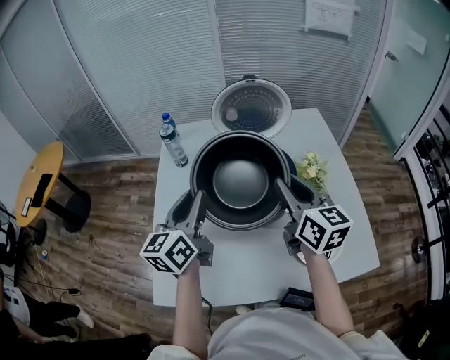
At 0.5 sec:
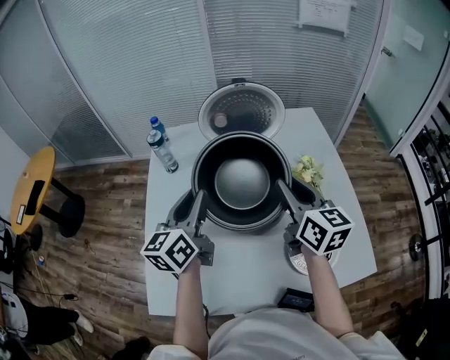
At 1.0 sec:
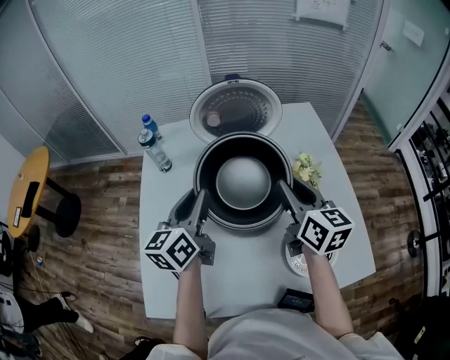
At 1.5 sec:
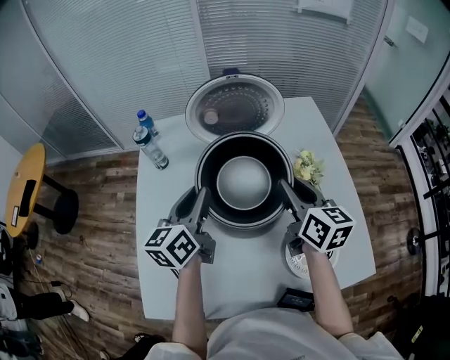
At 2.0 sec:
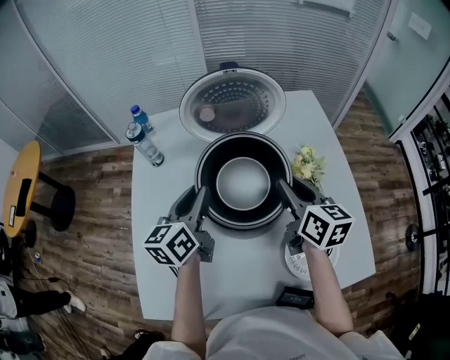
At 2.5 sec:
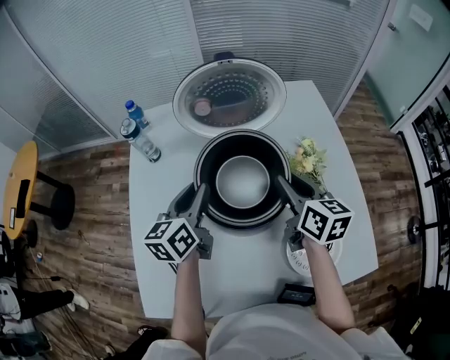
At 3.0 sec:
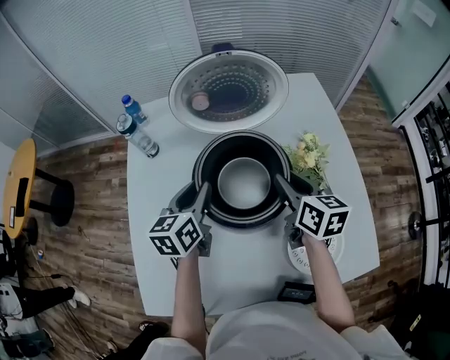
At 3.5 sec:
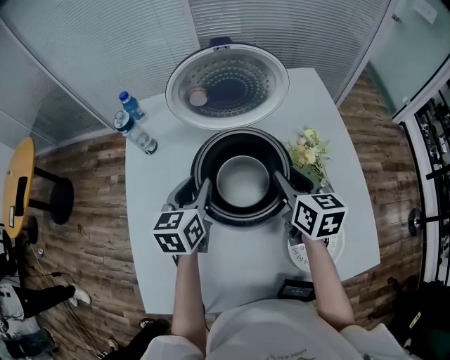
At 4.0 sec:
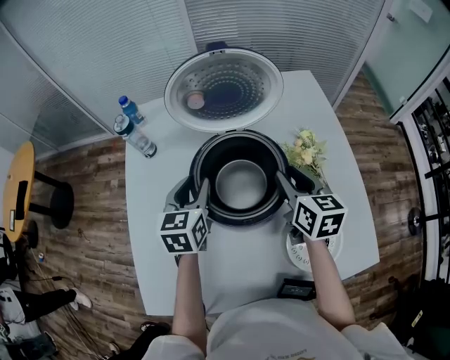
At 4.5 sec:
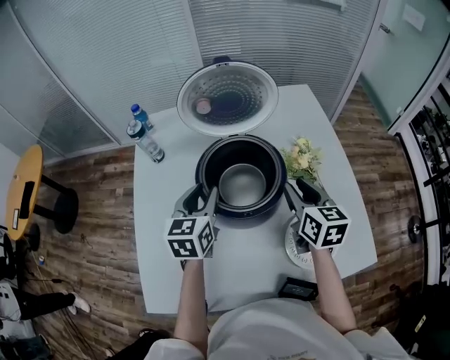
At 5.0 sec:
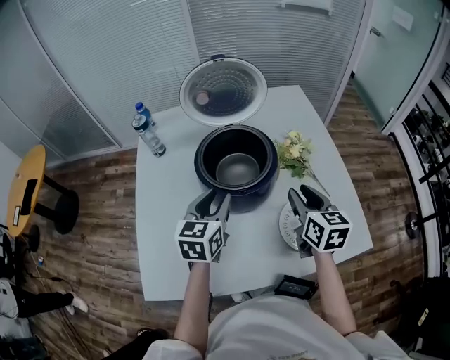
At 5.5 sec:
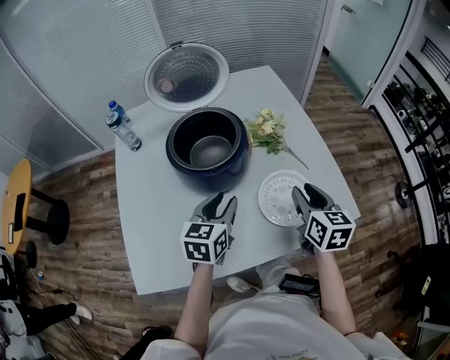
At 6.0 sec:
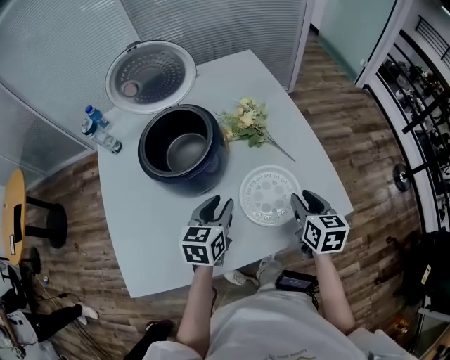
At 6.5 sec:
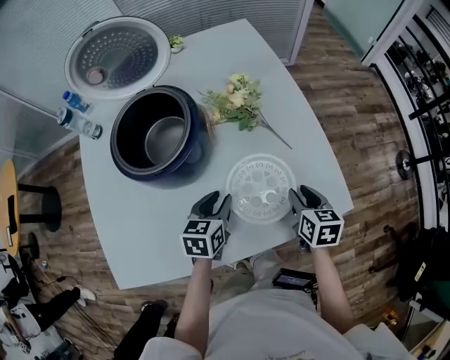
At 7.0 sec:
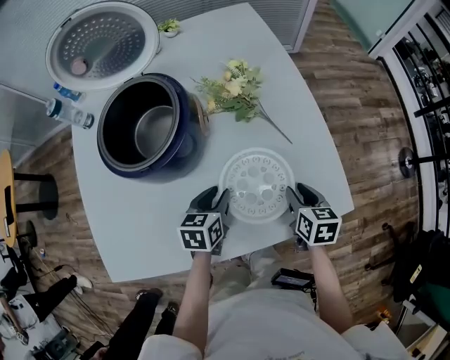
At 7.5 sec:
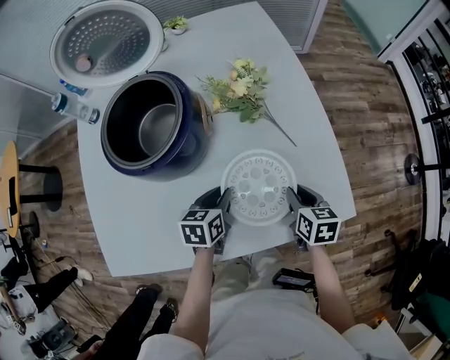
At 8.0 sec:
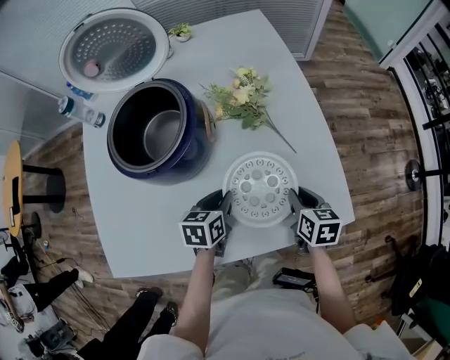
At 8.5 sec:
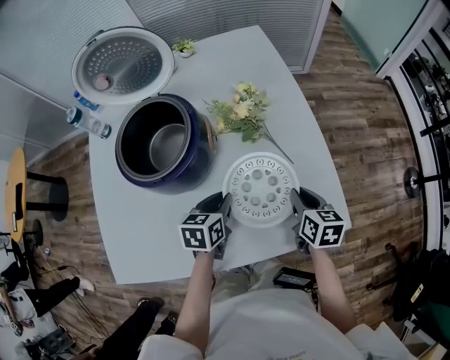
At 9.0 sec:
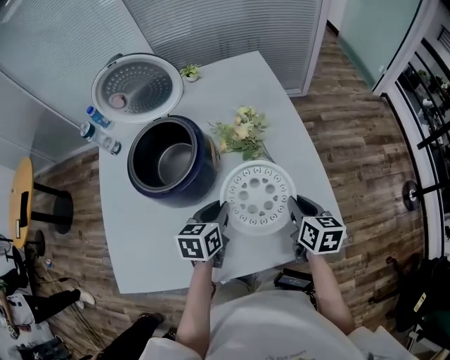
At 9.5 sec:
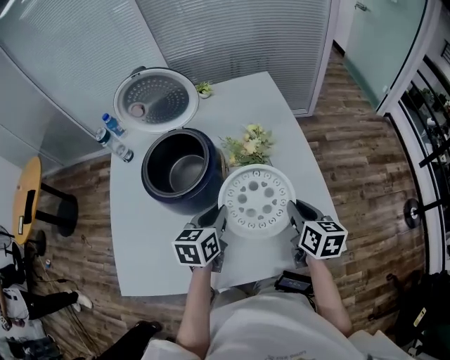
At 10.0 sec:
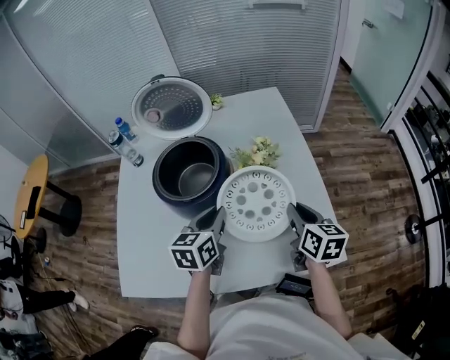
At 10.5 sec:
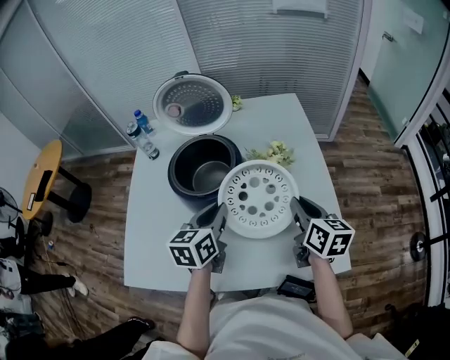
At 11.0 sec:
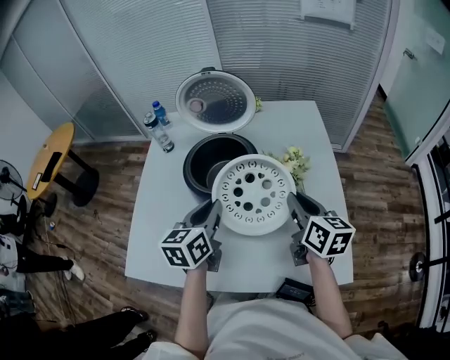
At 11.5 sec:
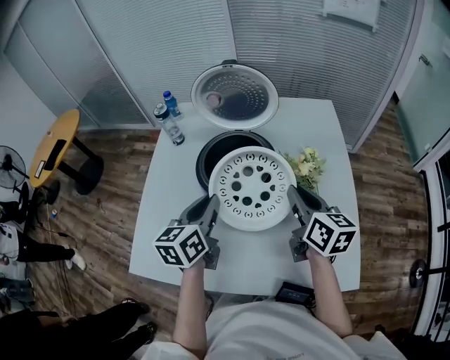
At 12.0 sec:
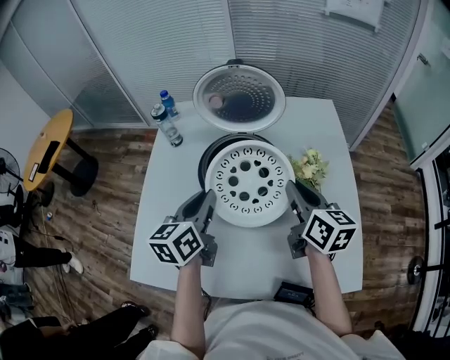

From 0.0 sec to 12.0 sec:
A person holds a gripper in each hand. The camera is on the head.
From 0.0 sec to 2.0 sec: The two grippers go some 15 cm forward, downward and to the right.
From 2.0 sec to 4.0 sec: Both grippers move downward, some 5 cm. The left gripper swivels some 30 degrees.
From 4.0 sec to 6.0 sec: The left gripper goes approximately 30 cm to the right and backward, and swivels approximately 20 degrees, while the right gripper heads backward and to the right, covering about 30 cm.
From 6.0 sec to 8.0 sec: The grippers both shift downward by about 15 cm. The left gripper rotates roughly 20 degrees.
From 8.0 sec to 10.0 sec: Both grippers move upward, roughly 20 cm. The left gripper changes its angle by some 20 degrees.
From 10.0 sec to 12.0 sec: The right gripper goes about 25 cm to the left, forward and upward; the left gripper is displaced to the left and forward by approximately 20 cm.

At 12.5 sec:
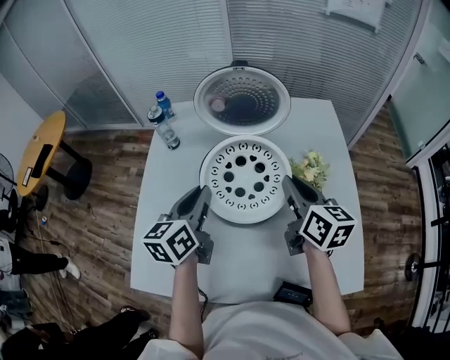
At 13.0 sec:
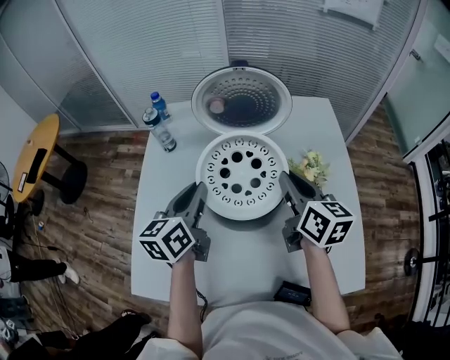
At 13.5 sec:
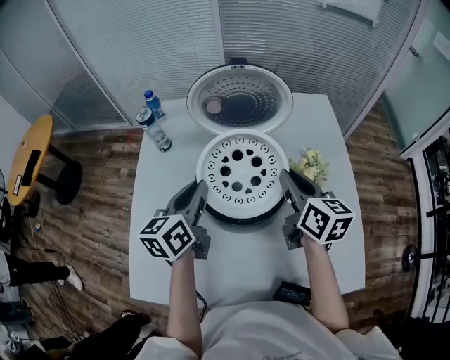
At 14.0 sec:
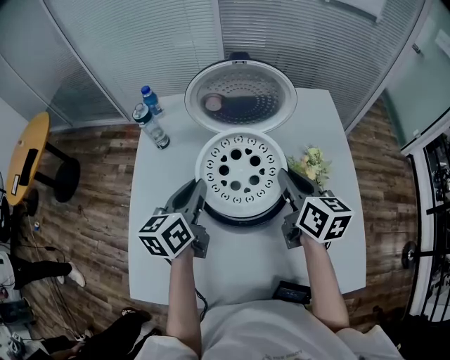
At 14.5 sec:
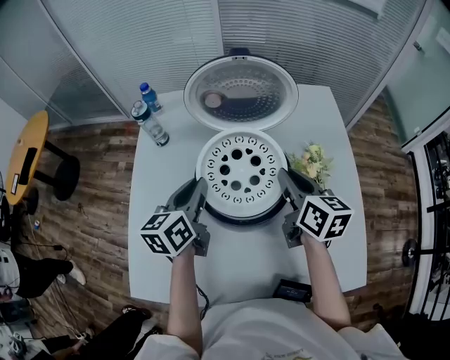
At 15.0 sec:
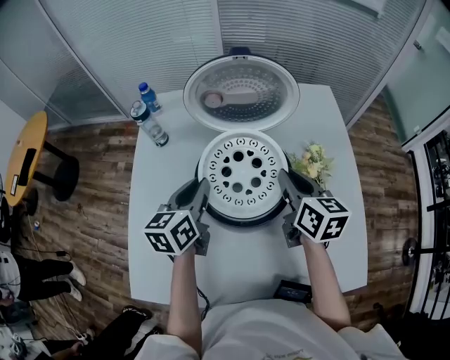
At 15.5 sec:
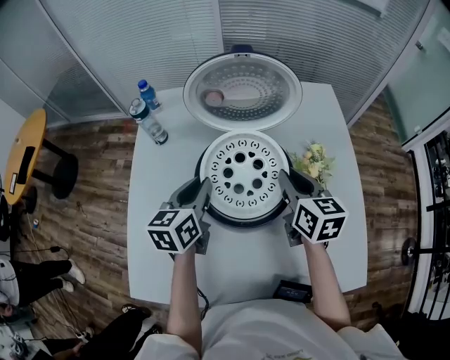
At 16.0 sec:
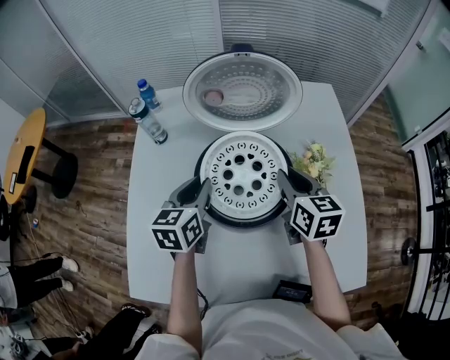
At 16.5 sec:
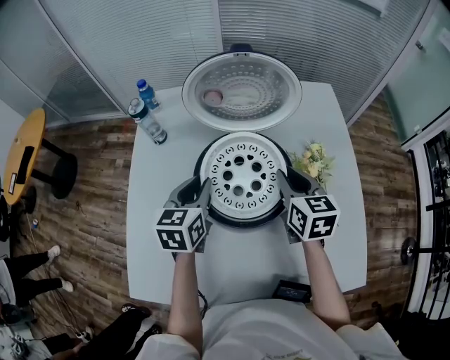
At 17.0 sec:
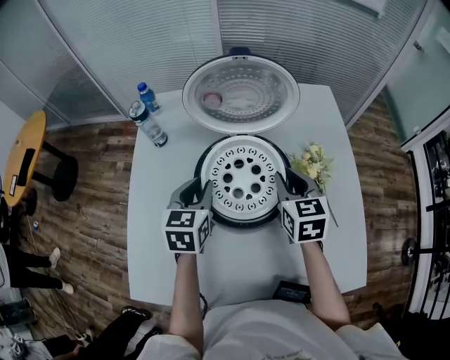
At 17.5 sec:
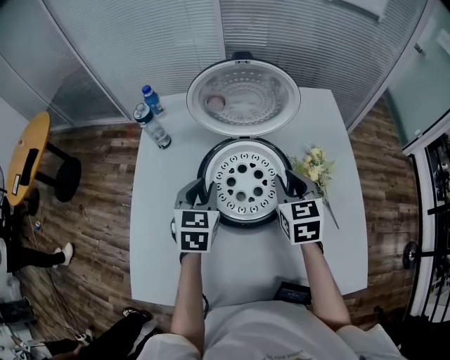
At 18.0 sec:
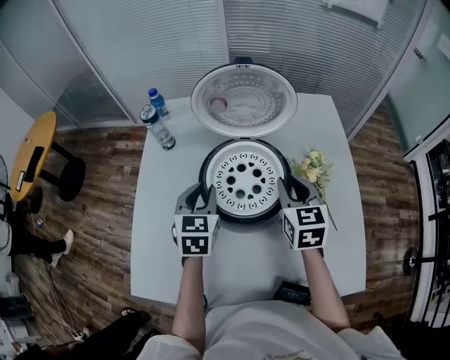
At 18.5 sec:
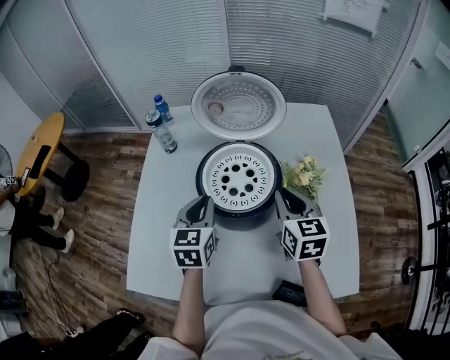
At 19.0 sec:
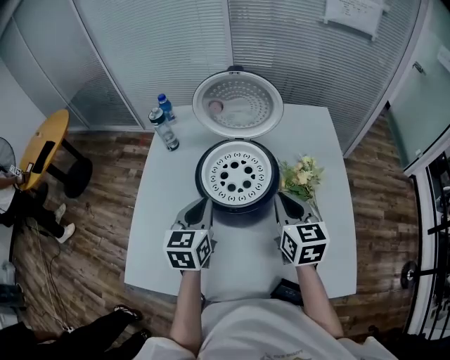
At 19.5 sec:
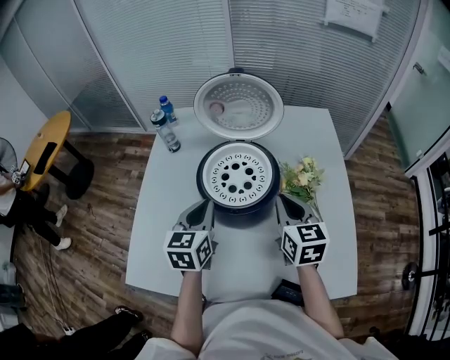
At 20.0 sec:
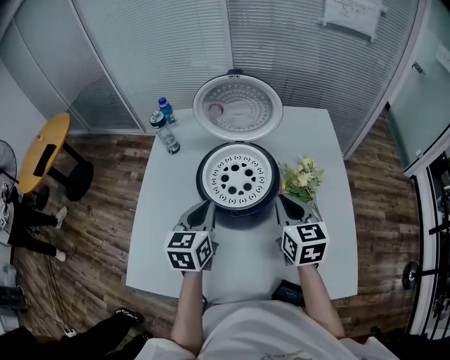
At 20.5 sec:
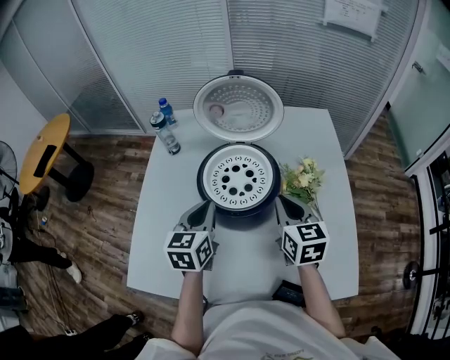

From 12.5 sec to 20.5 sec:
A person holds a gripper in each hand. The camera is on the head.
From 12.5 sec to 14.5 sec: The left gripper shifts by about 5 cm.
From 14.5 sec to 16.5 sec: There are only small adjustments of the grippers.
From 16.5 sec to 18.5 sec: The grippers both shift backward by approximately 5 cm.
From 18.5 sec to 20.5 sec: There are only small adjustments of the grippers.

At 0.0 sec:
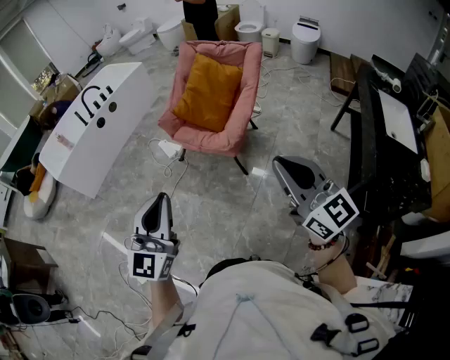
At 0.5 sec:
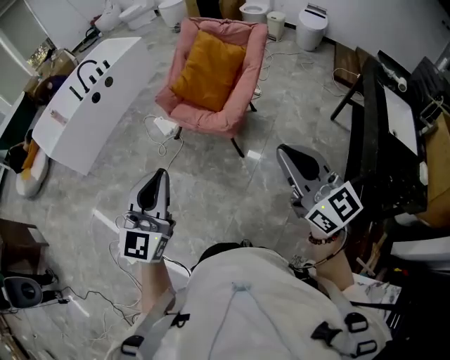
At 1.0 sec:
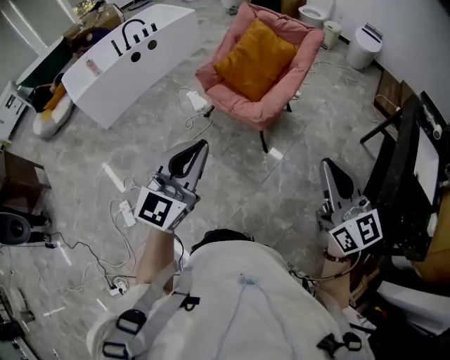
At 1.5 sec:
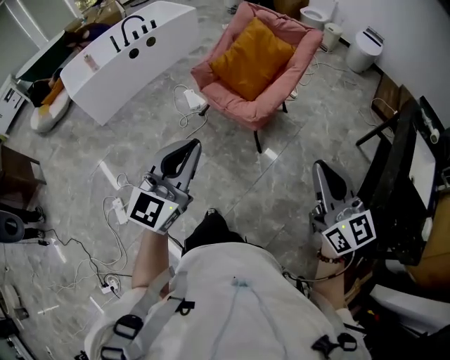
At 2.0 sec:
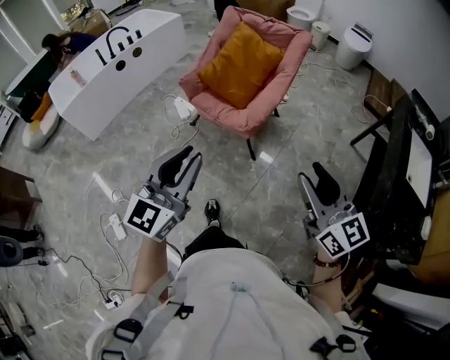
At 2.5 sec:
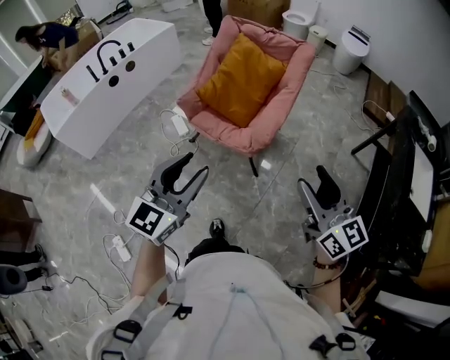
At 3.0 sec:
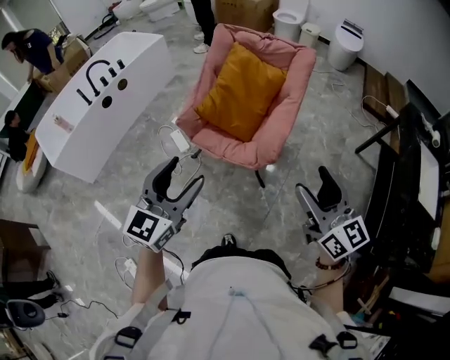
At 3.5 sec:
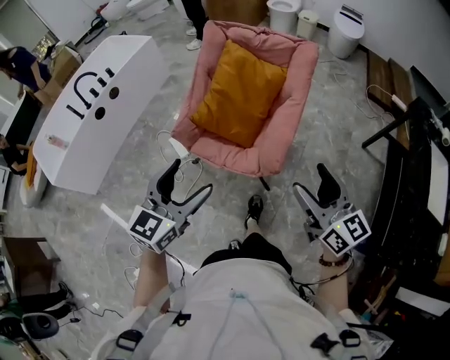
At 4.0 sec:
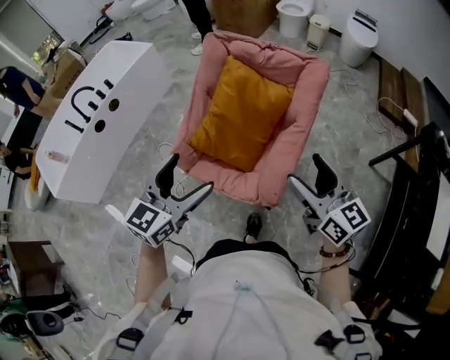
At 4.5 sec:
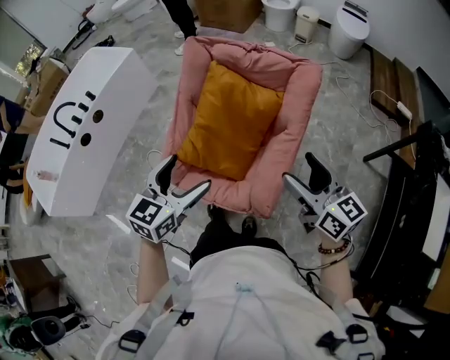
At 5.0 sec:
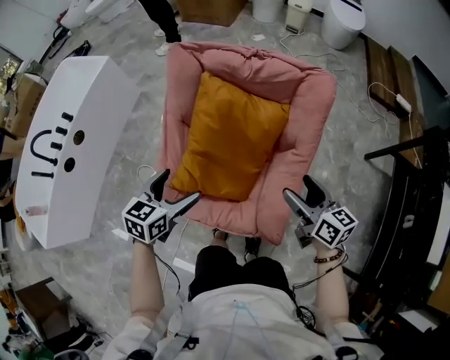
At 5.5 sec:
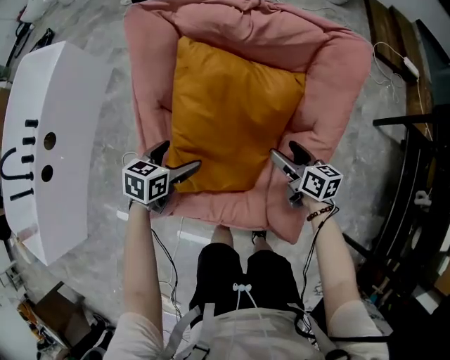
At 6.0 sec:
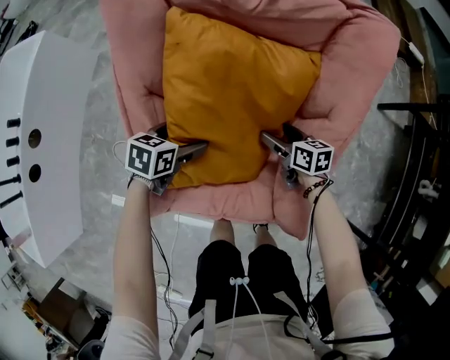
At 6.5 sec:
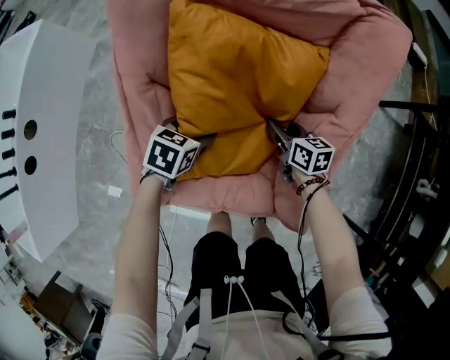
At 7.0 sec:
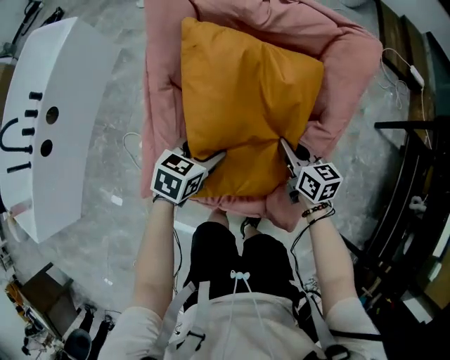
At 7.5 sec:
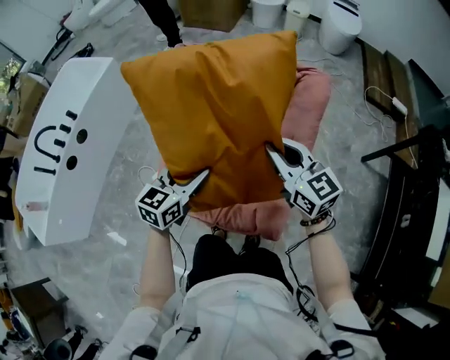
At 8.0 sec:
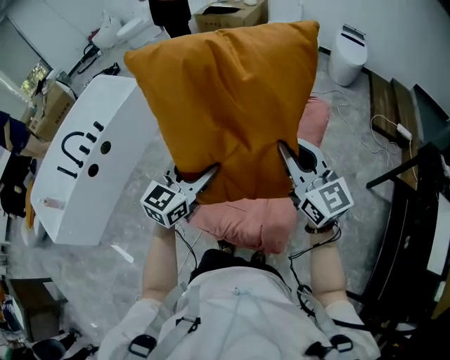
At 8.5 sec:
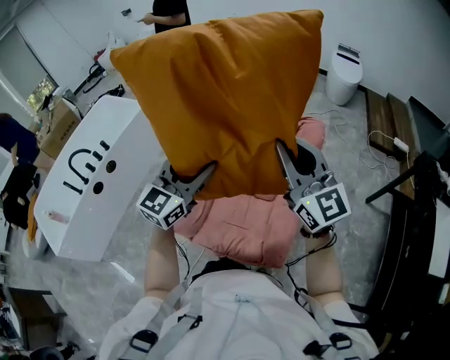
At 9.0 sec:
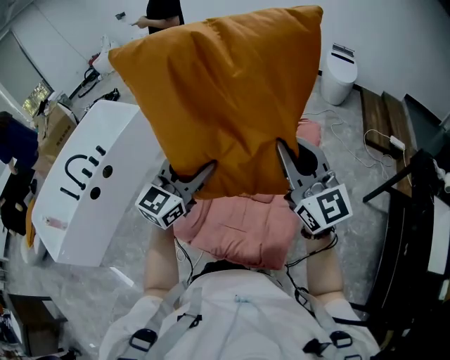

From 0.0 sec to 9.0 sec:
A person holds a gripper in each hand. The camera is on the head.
From 0.0 sec to 2.0 sec: The right gripper moves forward and downward, approximately 10 cm, and opens up. Meanwhile the left gripper shifts approximately 10 cm forward.
From 2.0 sec to 4.5 sec: The pair of grippers is taken forward, approximately 60 cm. The left gripper turns by approximately 30 degrees, and opens; the right gripper opens up.
From 4.5 sec to 7.0 sec: Both grippers move downward and forward, about 40 cm. The left gripper rotates about 30 degrees, and closes; the right gripper changes its angle by approximately 30 degrees, and closes up.
From 7.0 sec to 9.0 sec: Both grippers move upward, approximately 50 cm. The left gripper points its fingers about 50 degrees further upward. Meanwhile the right gripper tilts its fingers some 40 degrees upward.
